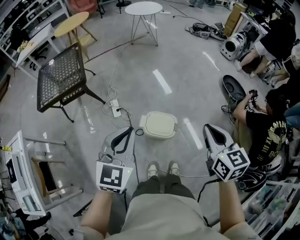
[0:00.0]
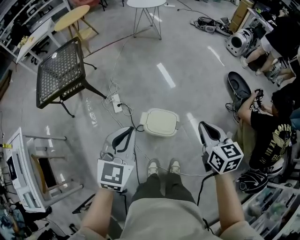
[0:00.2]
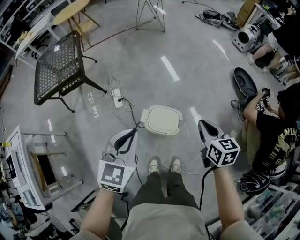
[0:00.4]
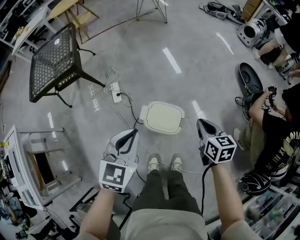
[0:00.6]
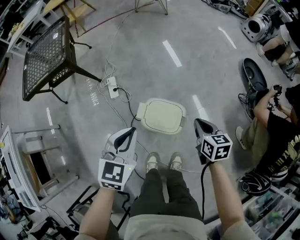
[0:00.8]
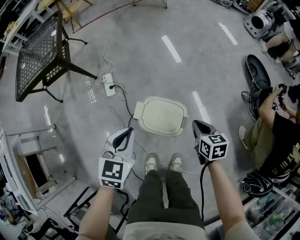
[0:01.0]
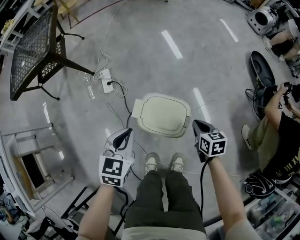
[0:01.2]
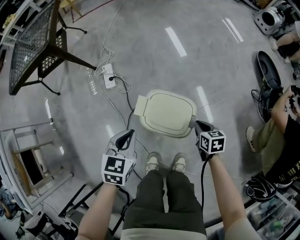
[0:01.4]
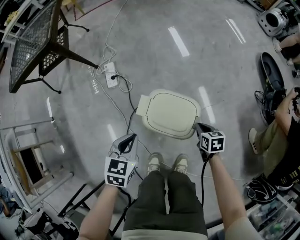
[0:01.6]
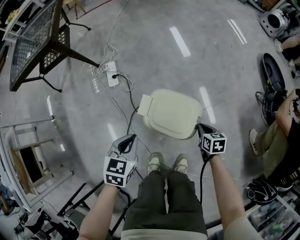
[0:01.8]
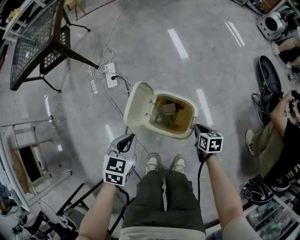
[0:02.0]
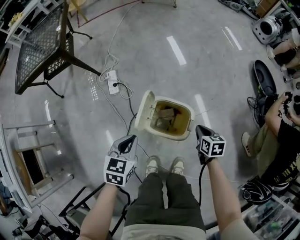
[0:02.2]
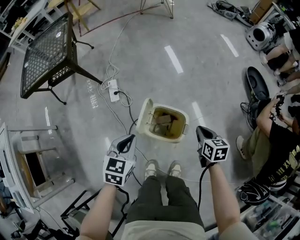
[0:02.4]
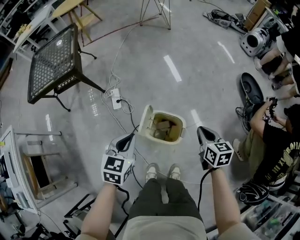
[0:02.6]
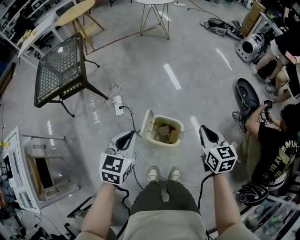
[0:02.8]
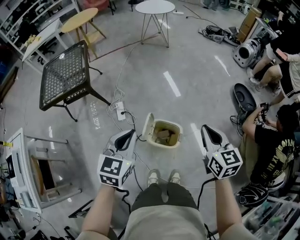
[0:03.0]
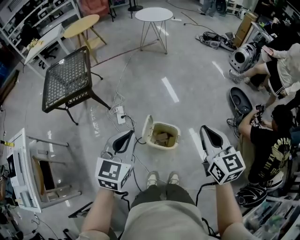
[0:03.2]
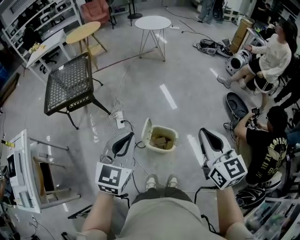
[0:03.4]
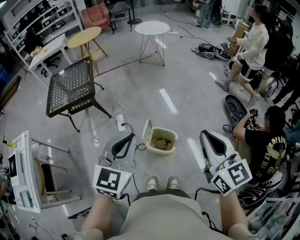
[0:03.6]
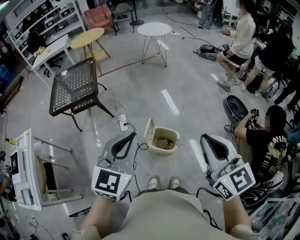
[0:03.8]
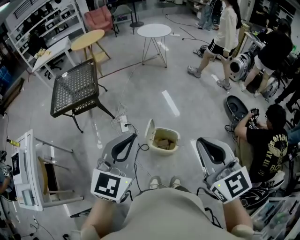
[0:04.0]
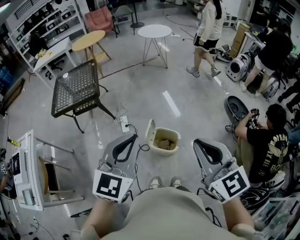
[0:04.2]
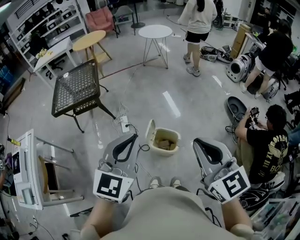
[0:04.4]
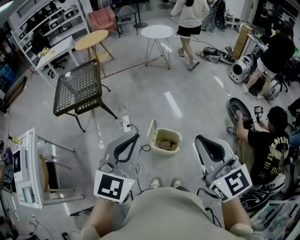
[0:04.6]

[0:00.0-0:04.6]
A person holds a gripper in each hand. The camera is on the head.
0:00.0 to 0:01.6: Both grippers move downward, roughly 60 cm. The left gripper swivels about 30 degrees, while the right gripper tips its fingers downward by roughly 40 degrees.
0:01.6 to 0:03.0: The grippers both shift upward by about 50 cm. The left gripper turns by some 20 degrees, while the right gripper tips its fingers upward by about 40 degrees.
0:03.0 to 0:04.6: The two grippers go some 25 cm upward and backward. The right gripper swivels some 30 degrees.

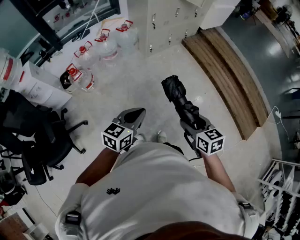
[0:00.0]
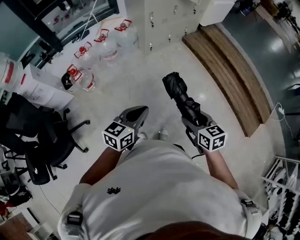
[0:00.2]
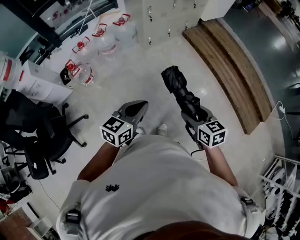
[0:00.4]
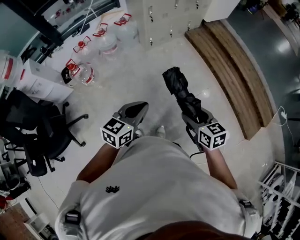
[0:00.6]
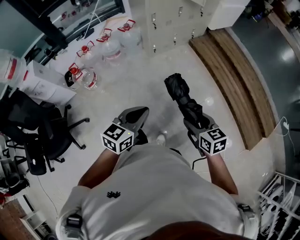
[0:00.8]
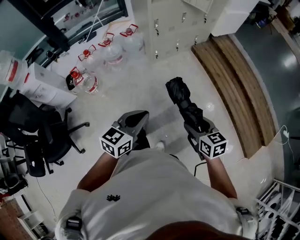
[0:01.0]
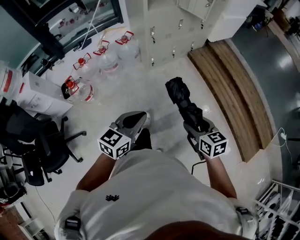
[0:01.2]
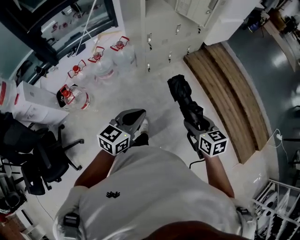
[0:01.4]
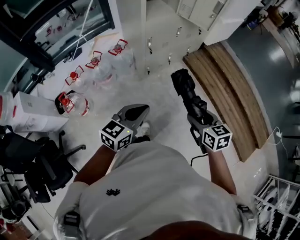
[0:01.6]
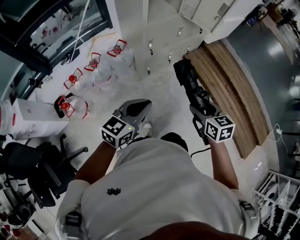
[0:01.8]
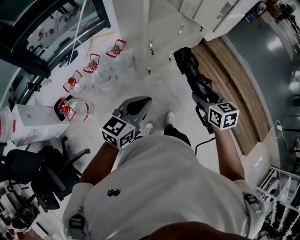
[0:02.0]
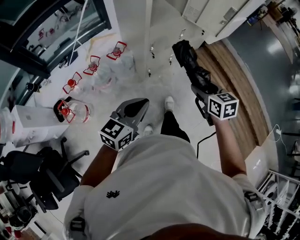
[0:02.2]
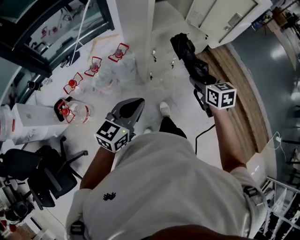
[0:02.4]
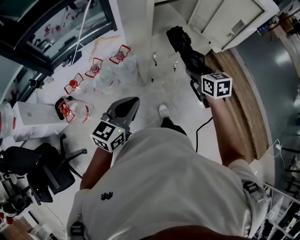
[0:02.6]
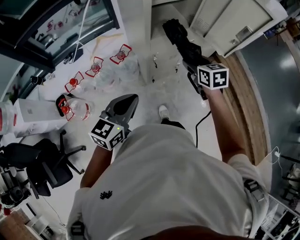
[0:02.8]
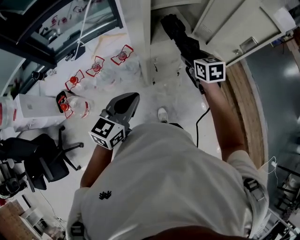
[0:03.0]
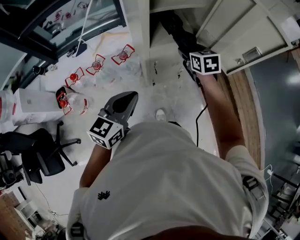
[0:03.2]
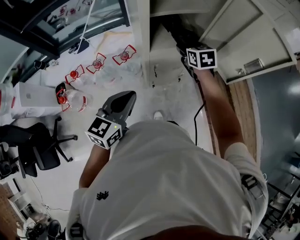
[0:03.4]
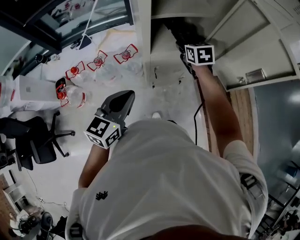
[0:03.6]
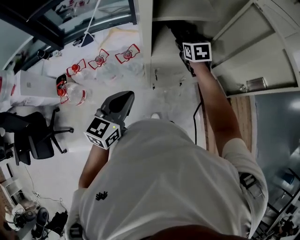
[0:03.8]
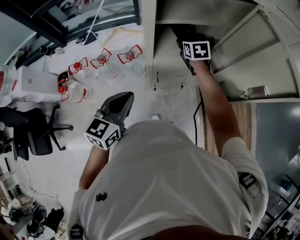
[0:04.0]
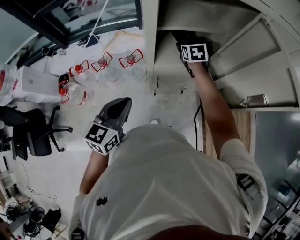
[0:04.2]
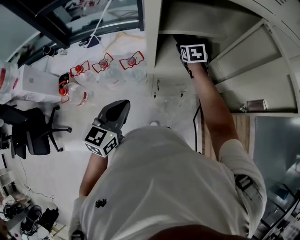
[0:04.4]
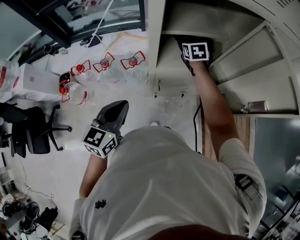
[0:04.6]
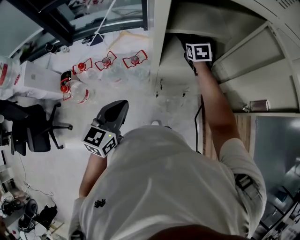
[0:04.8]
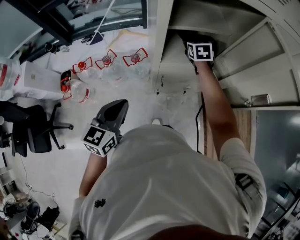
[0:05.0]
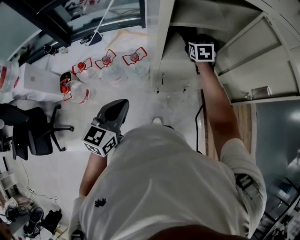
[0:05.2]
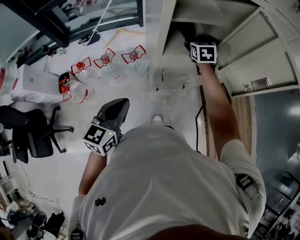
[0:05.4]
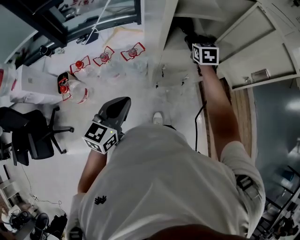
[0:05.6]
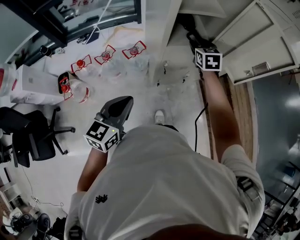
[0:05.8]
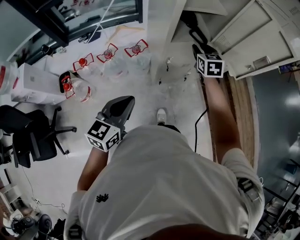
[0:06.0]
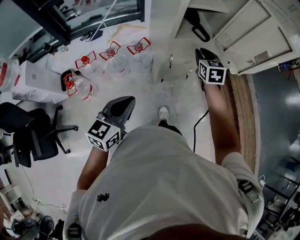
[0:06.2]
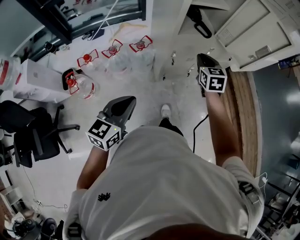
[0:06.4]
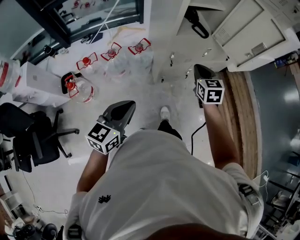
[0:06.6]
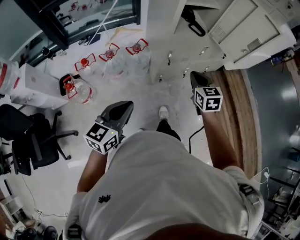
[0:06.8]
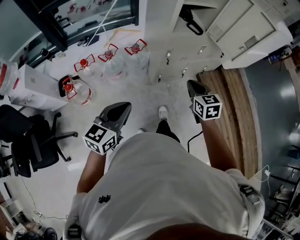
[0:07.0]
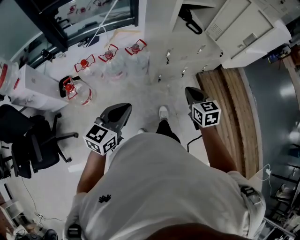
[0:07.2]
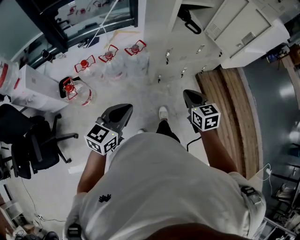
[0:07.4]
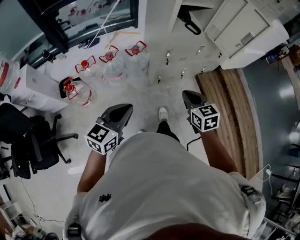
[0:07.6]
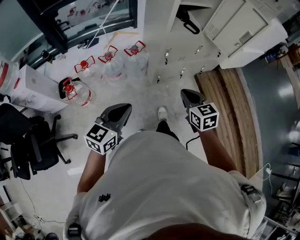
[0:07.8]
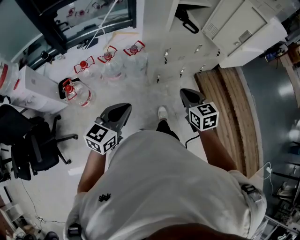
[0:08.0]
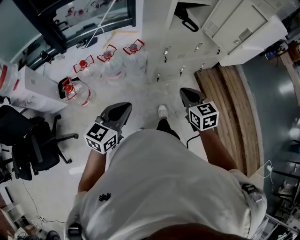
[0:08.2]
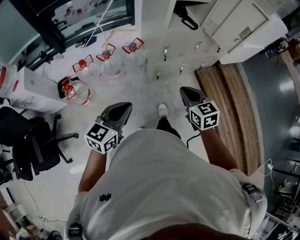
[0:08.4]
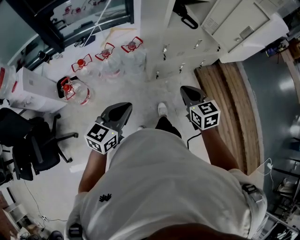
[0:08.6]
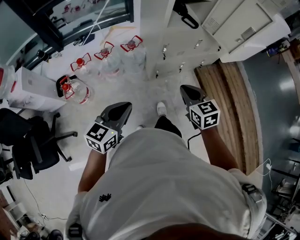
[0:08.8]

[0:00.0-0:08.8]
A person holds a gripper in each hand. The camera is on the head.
0:00.0 to 0:01.4: Both grippers travel together forward, some 25 cm.
0:01.4 to 0:03.0: The right gripper shifts approximately 60 cm forward. The left gripper moves forward, roughly 35 cm.
0:03.0 to 0:04.4: The right gripper travels forward by some 25 cm. The left gripper shifts approximately 5 cm forward, and changes its angle by approximately 20 degrees.
0:04.4 to 0:05.8: The left gripper moves backward, some 10 cm, while the right gripper is displaced backward and upward by some 15 cm.
0:05.8 to 0:07.4: The right gripper travels backward by some 40 cm, and closes its fingers; the left gripper heads backward, covering some 20 cm.
0:07.4 to 0:08.8: The grippers stay close to where they were, moving slightly.

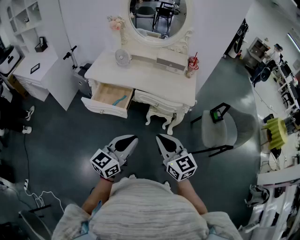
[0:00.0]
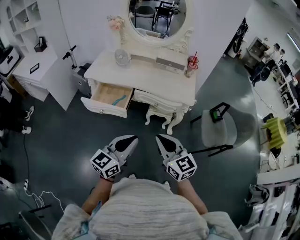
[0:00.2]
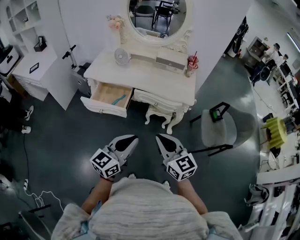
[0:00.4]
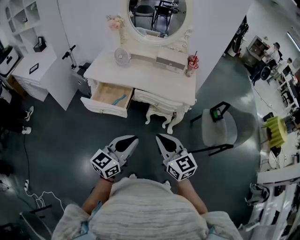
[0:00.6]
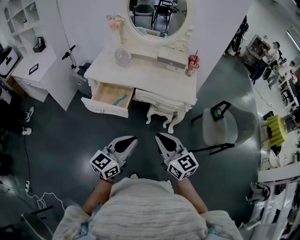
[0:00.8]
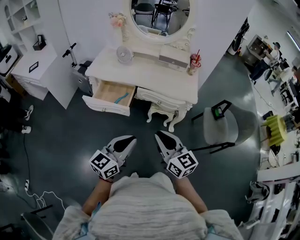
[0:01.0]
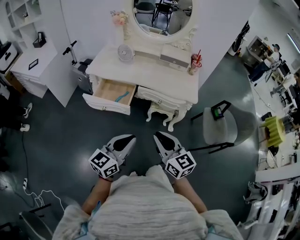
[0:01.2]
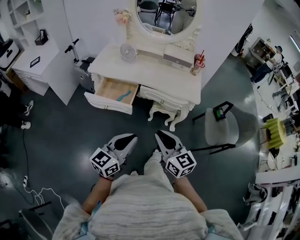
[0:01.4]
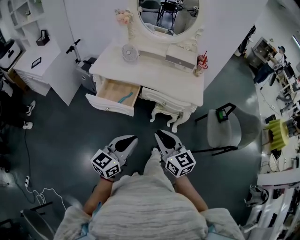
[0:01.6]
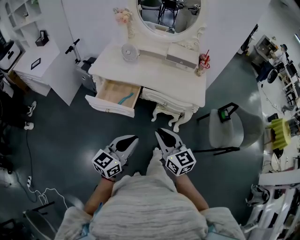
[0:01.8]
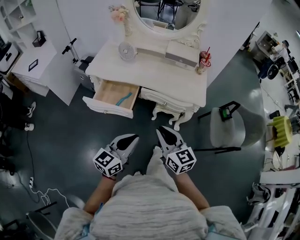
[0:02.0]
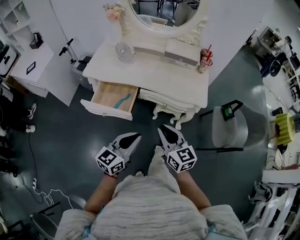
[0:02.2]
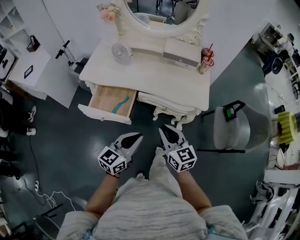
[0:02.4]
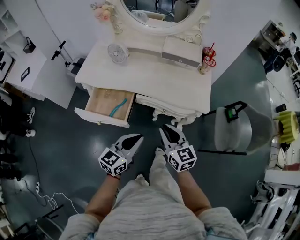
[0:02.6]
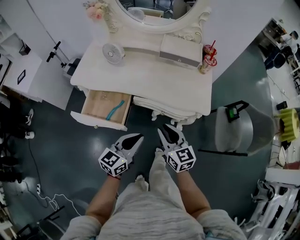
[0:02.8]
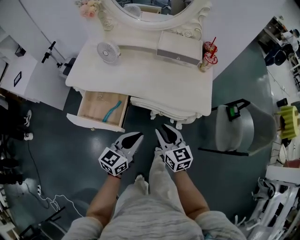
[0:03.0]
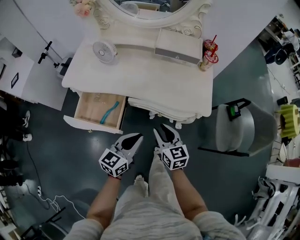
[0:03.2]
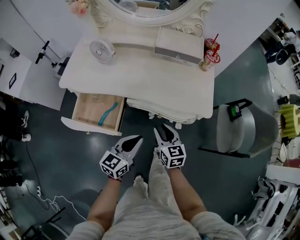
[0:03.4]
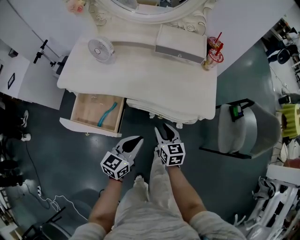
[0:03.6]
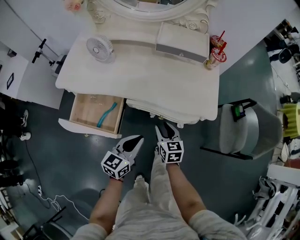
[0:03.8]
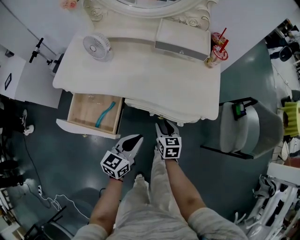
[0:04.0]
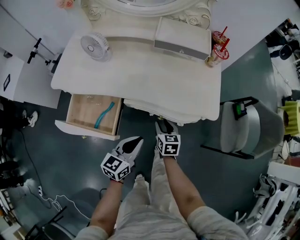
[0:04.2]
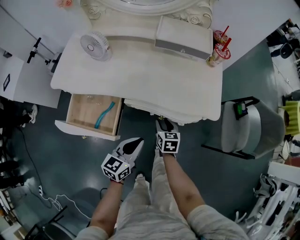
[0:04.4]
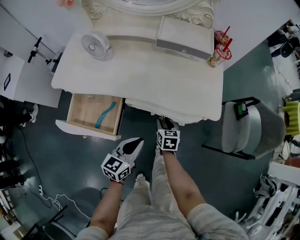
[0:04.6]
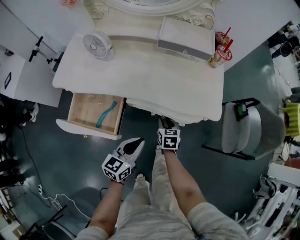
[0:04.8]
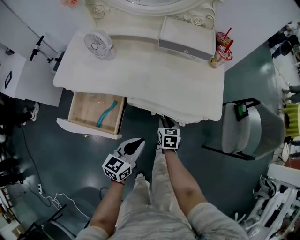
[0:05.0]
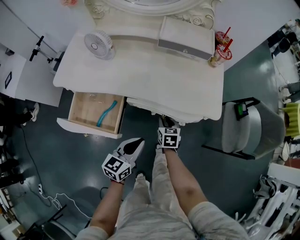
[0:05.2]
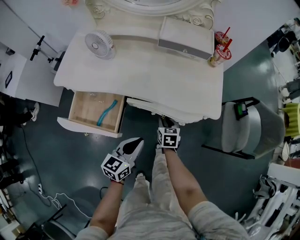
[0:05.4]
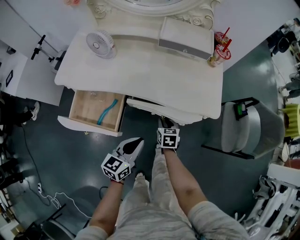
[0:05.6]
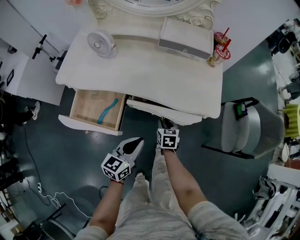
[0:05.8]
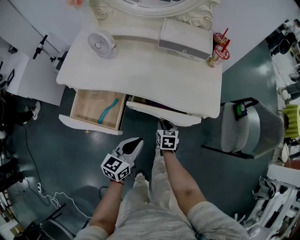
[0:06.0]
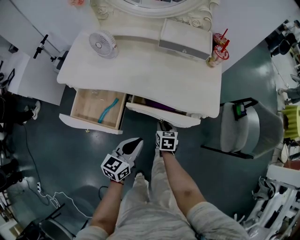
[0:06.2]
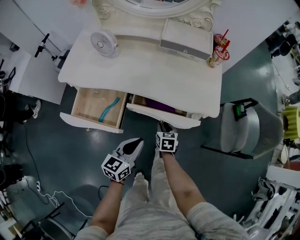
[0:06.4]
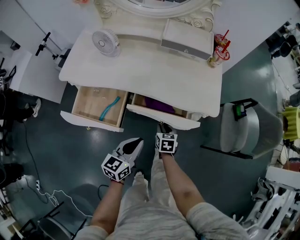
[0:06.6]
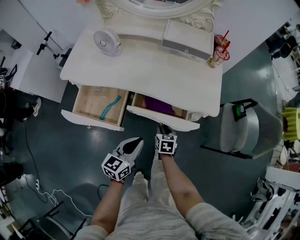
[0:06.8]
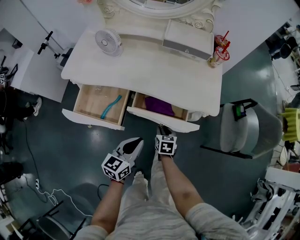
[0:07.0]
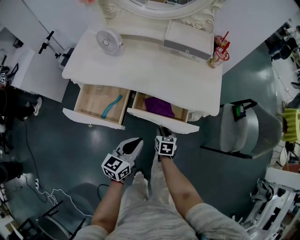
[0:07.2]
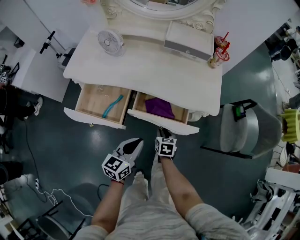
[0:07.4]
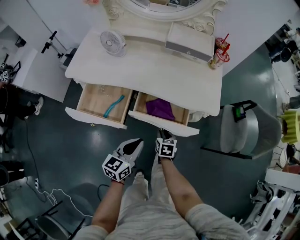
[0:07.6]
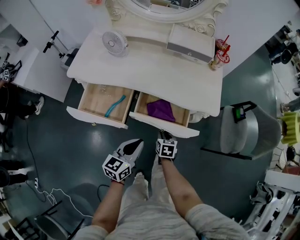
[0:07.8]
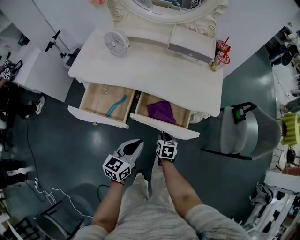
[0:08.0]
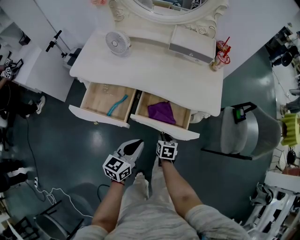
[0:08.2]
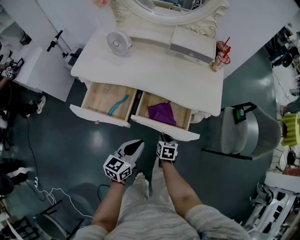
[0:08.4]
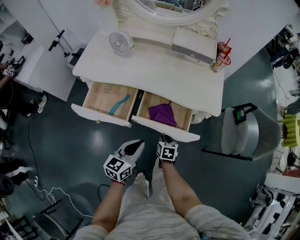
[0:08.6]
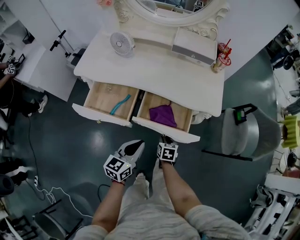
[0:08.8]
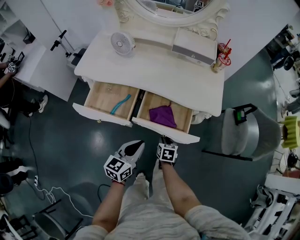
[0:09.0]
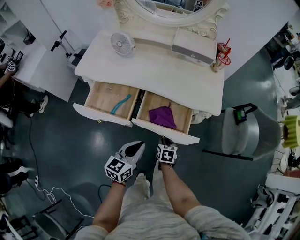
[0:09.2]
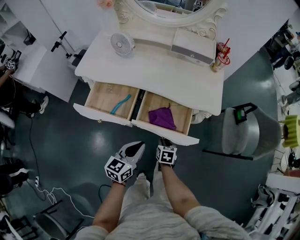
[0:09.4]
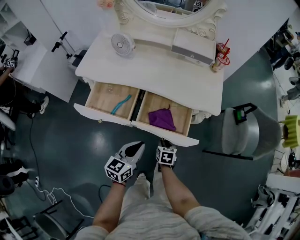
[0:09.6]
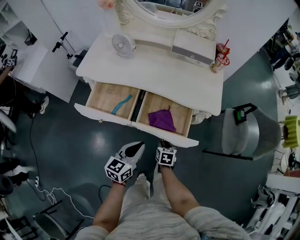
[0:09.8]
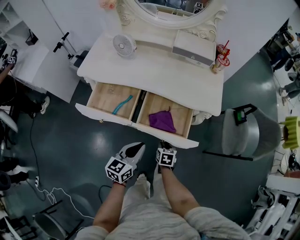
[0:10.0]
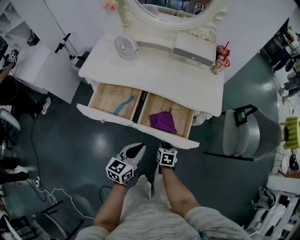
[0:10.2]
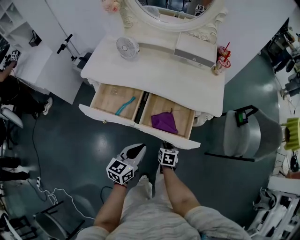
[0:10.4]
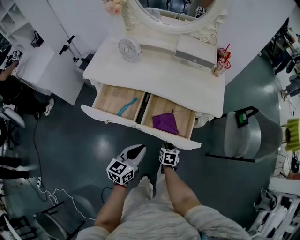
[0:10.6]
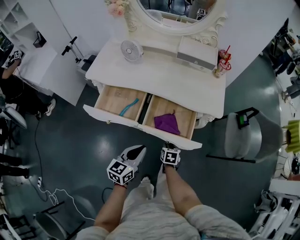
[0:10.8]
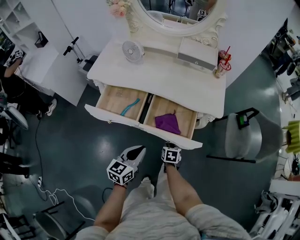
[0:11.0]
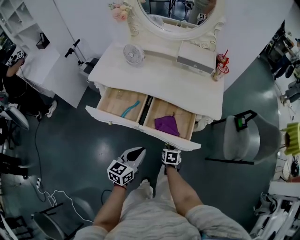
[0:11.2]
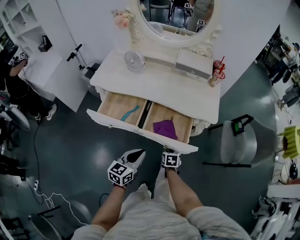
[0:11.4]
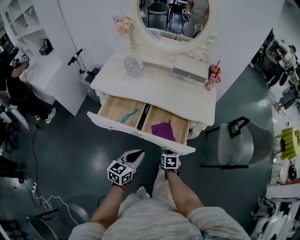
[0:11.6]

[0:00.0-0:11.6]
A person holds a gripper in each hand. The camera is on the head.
0:00.0 to 0:01.4: The left gripper moves to the left, approximately 5 cm; the right gripper shifts by roughly 5 cm.
0:01.4 to 0:02.8: Both grippers travel together forward and downward, roughly 25 cm.
0:02.8 to 0:04.4: The right gripper moves downward and forward, approximately 30 cm, and rotates about 30 degrees, while the left gripper goes some 15 cm downward and forward.
0:04.4 to 0:05.8: The grippers stay close to where they were, moving slightly.
0:05.8 to 0:07.2: The right gripper is displaced backward by some 5 cm.
0:07.2 to 0:08.8: The right gripper is displaced backward by roughly 5 cm; the left gripper ends up some 5 cm from where it was.
0:08.8 to 0:10.2: The grippers move only a little.
0:10.2 to 0:11.6: The left gripper changes place by about 5 cm. The right gripper shifts some 5 cm upward.
